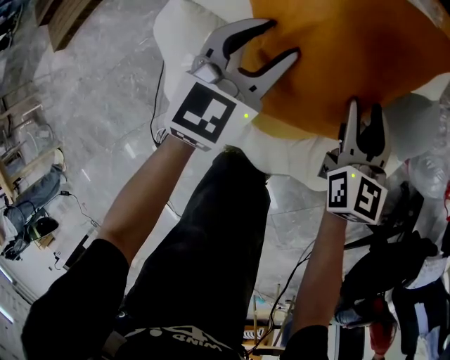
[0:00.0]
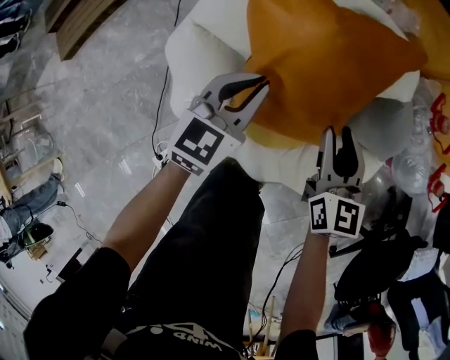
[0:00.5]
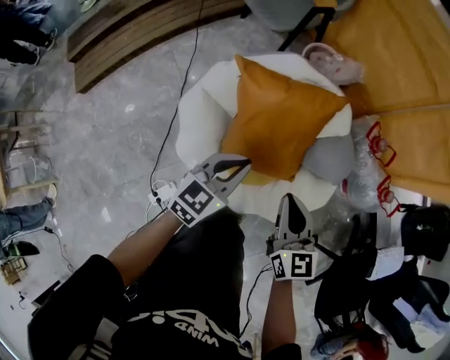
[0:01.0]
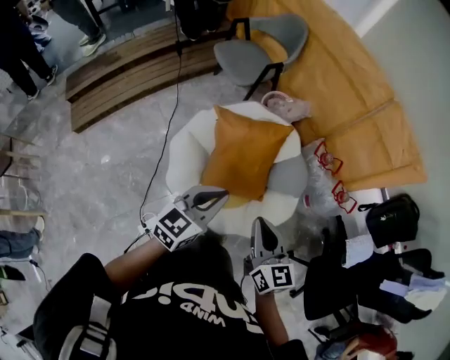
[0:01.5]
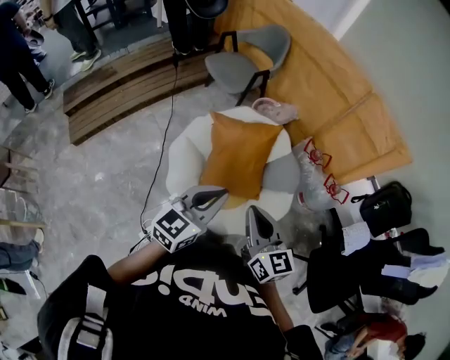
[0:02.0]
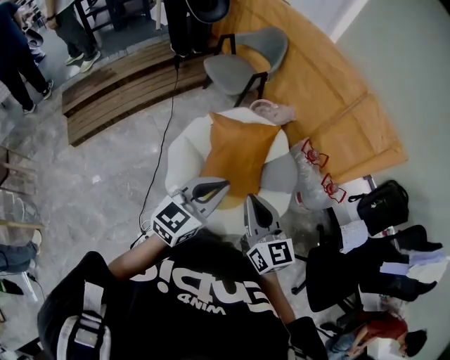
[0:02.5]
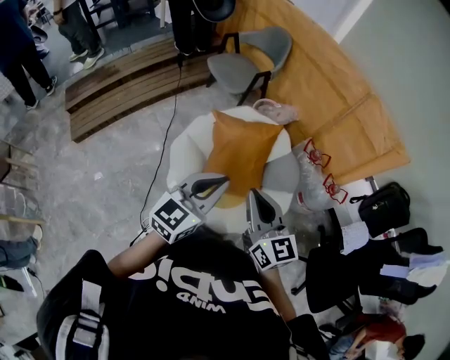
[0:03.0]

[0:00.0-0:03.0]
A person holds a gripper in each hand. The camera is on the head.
0:00.0 to 0:01.5: The grippers both shift upward and backward by about 50 cm. The right gripper closes its fingers. Meanwhile the left gripper closes.
0:01.5 to 0:03.0: The left gripper is displaced upward and backward by roughly 10 cm, while the right gripper is displaced upward by roughly 10 cm.

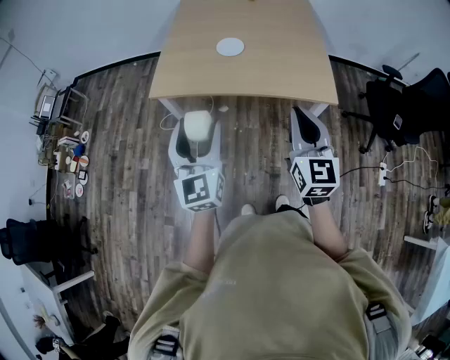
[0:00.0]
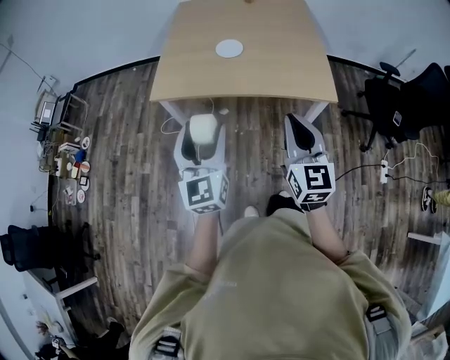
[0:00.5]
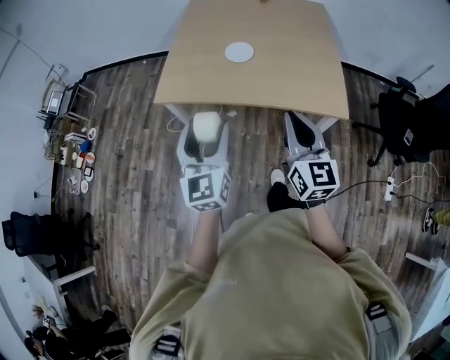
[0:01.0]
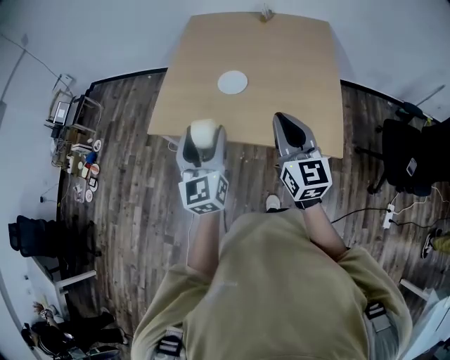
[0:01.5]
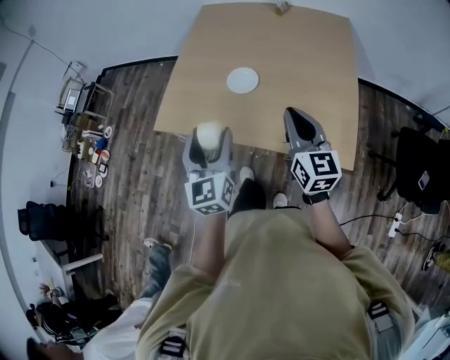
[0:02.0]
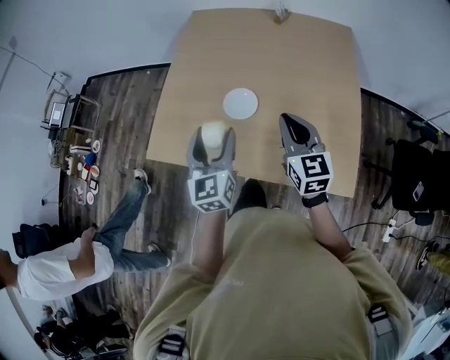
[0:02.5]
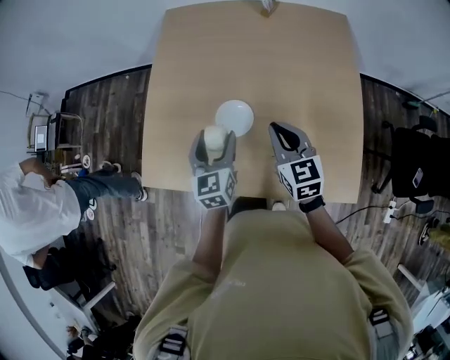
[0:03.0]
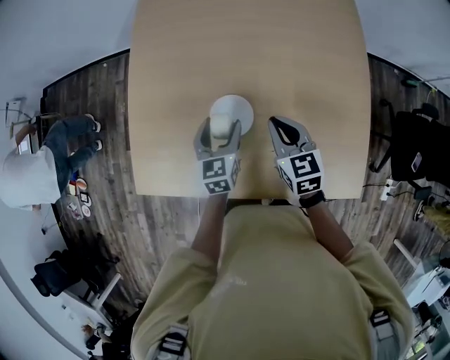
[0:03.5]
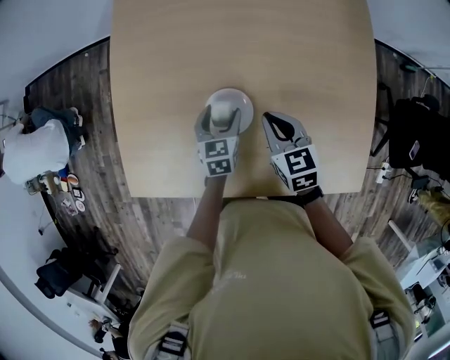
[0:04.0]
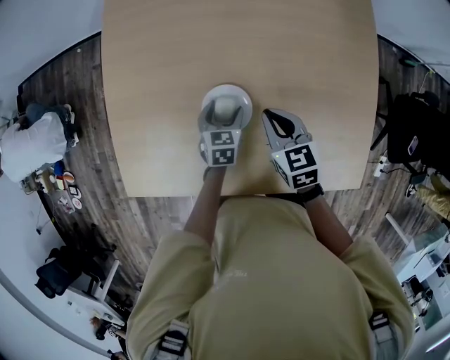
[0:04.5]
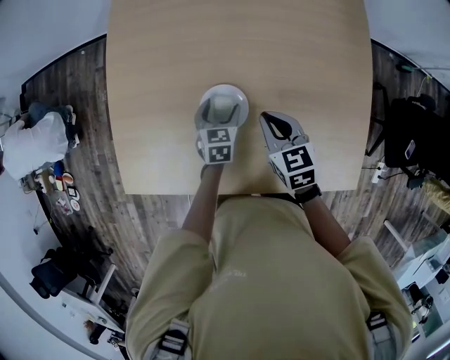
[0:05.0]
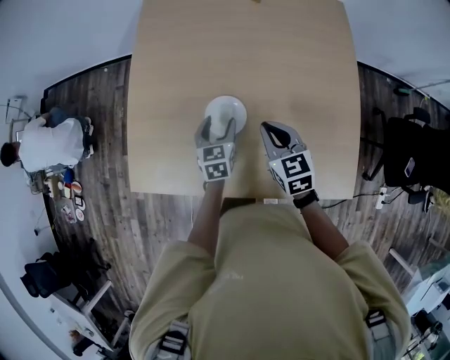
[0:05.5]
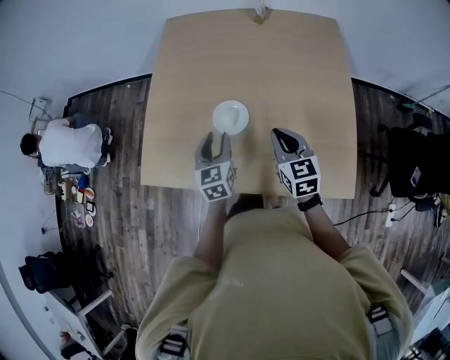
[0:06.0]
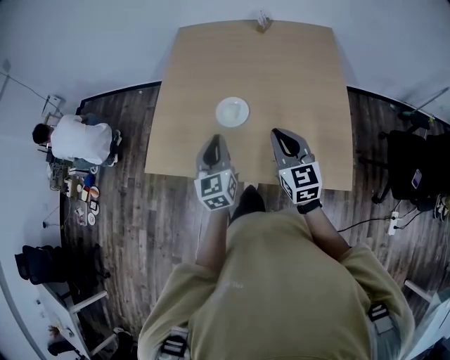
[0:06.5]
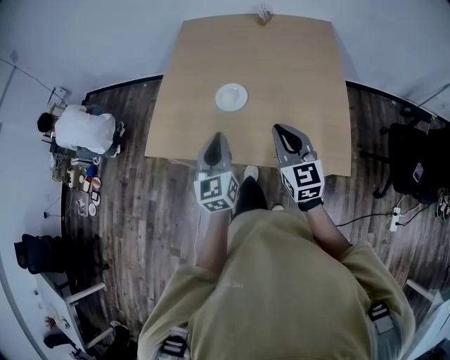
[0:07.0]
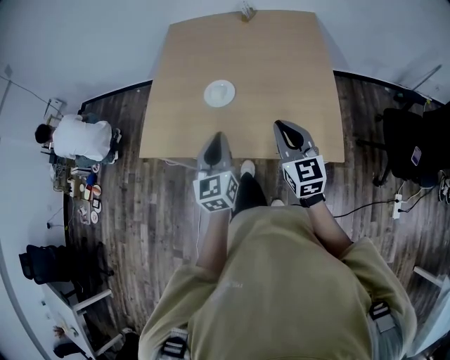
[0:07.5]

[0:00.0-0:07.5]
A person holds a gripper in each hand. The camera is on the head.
0:00.0 to 0:02.0: The grippers both shift forward and to the right by approximately 30 cm. The right gripper changes its angle by some 20 degrees.
0:02.0 to 0:04.0: The grippers both shift forward and downward by approximately 50 cm. The left gripper tilts its fingers about 40 degrees downward, while the right gripper tips its fingers downward by approximately 40 degrees.
0:04.0 to 0:05.5: The grippers both shift upward and backward by about 10 cm.
0:05.5 to 0:07.5: The right gripper is displaced backward by about 30 cm, and swivels approximately 20 degrees. The left gripper moves backward and upward, approximately 40 cm, changes its angle by approximately 30 degrees, and closes.

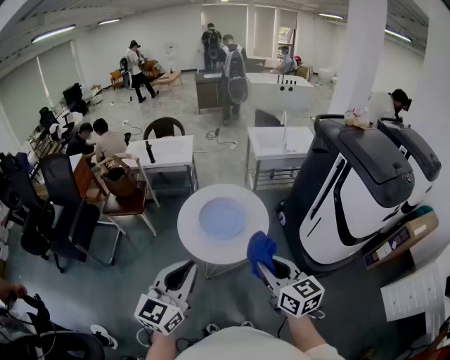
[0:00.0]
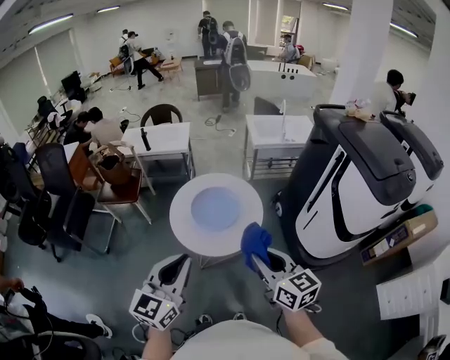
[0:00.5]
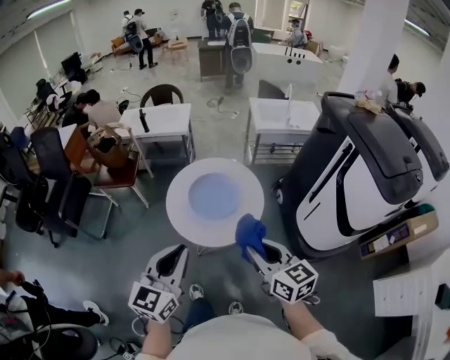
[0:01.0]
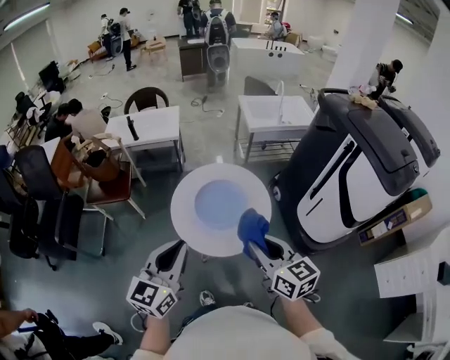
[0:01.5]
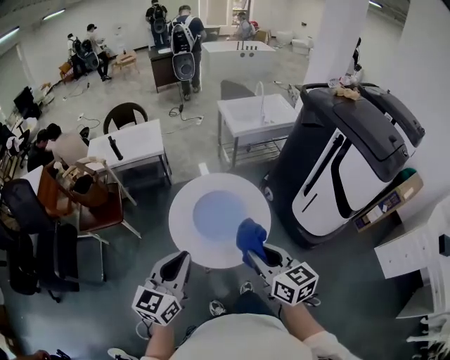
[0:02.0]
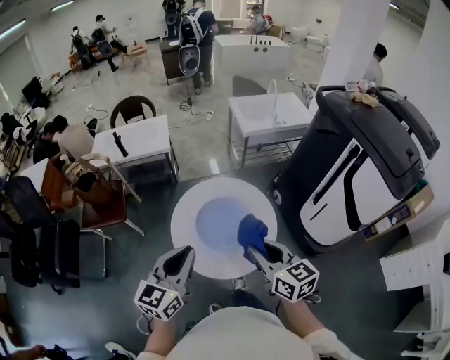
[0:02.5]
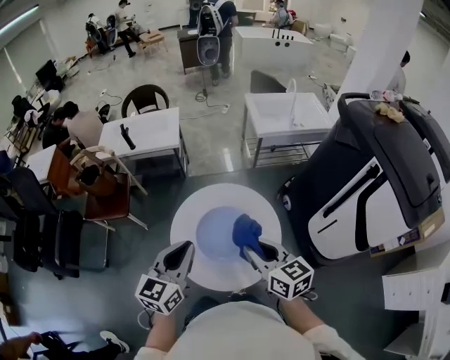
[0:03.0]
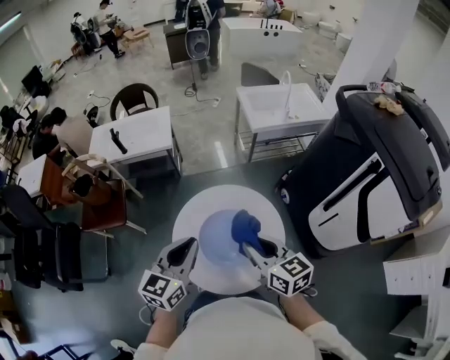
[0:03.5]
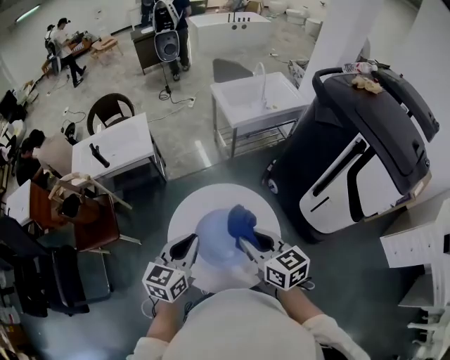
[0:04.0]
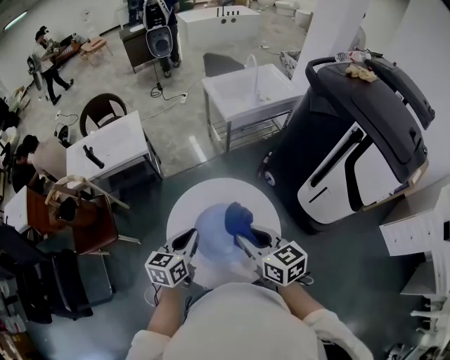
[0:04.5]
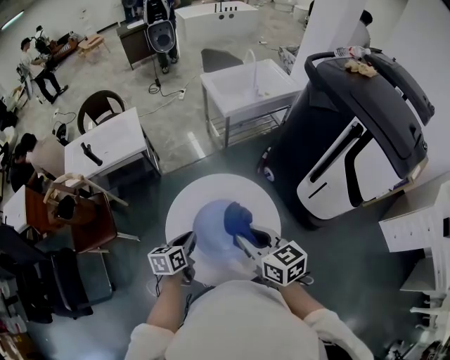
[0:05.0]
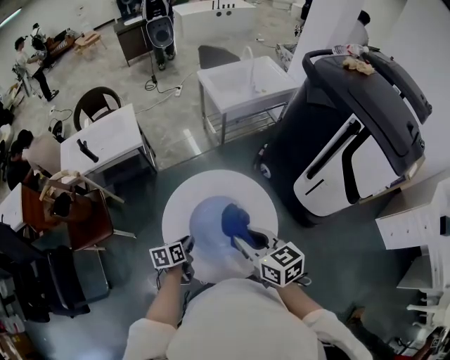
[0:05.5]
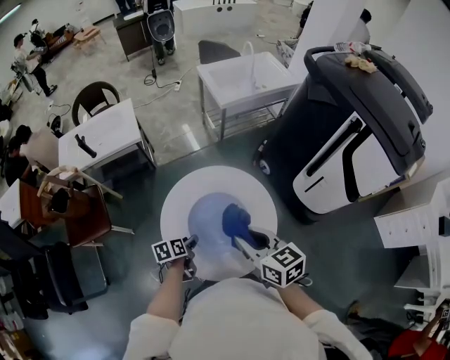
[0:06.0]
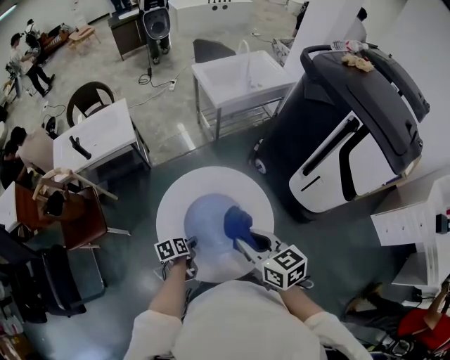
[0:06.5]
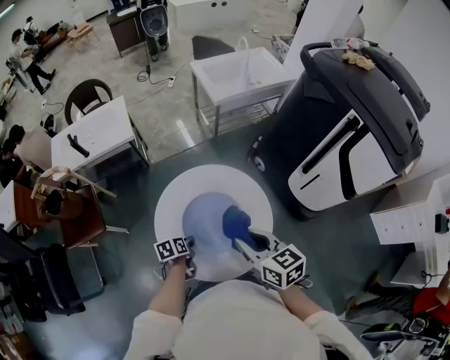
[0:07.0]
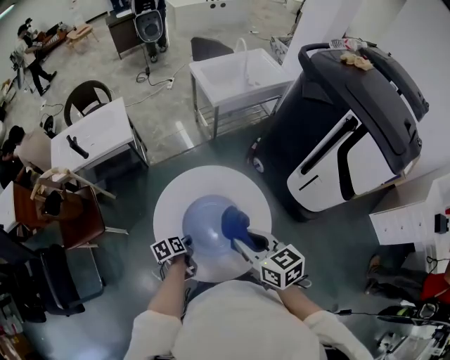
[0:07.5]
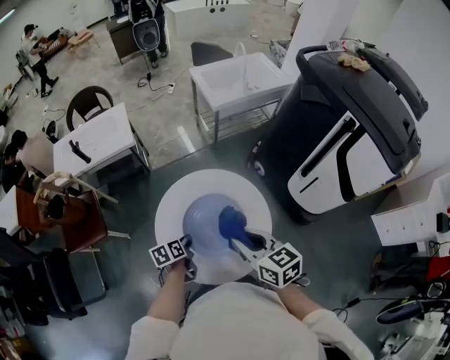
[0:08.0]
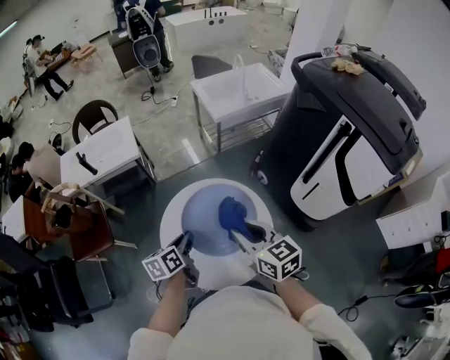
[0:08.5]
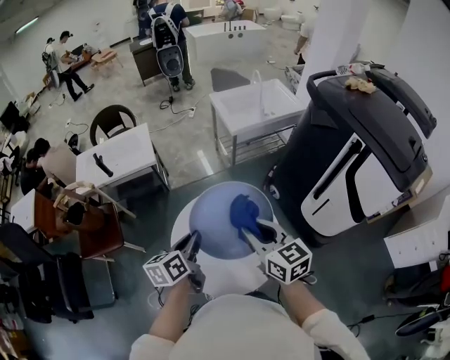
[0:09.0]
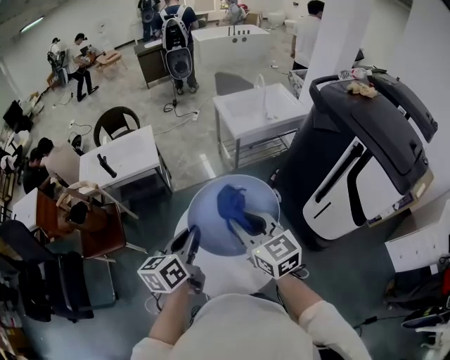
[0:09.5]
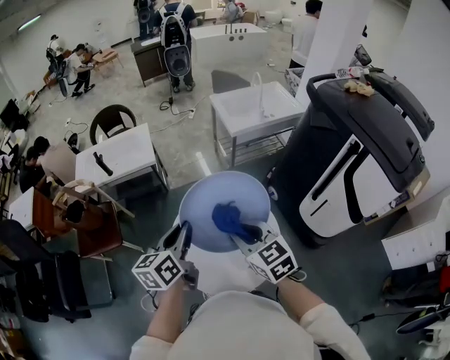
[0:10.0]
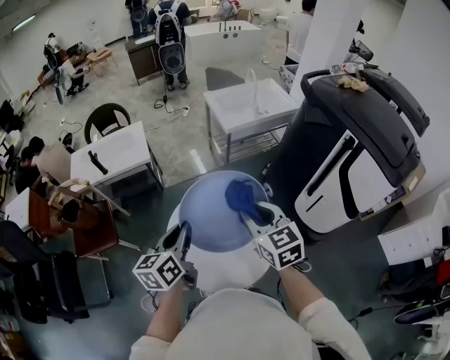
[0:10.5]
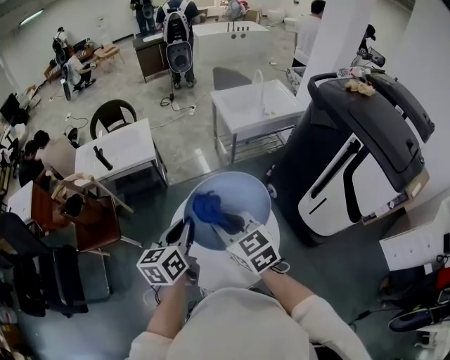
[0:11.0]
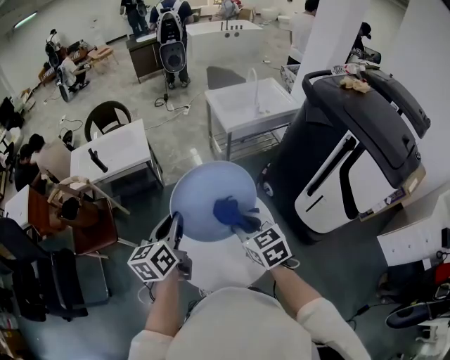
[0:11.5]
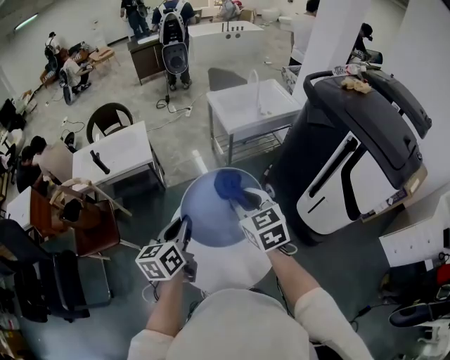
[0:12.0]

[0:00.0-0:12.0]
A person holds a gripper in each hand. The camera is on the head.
0:00.0 to 0:02.0: The left gripper moves forward, to the left and downward, about 20 cm, while the right gripper heads forward and to the left, covering about 15 cm.
0:02.0 to 0:04.0: The two grippers go some 25 cm forward.
0:04.0 to 0:06.0: The left gripper is displaced downward by approximately 25 cm, rotates about 50 degrees, and opens its fingers.
0:06.0 to 0:08.0: The left gripper closes up.
0:08.0 to 0:10.0: The left gripper is displaced upward by about 30 cm, and angles its fingers upward, by some 30 degrees, while the right gripper shifts roughly 5 cm upward, and turns by some 20 degrees.
0:10.0 to 0:12.0: The right gripper goes left and right, approximately 10 cm each way, reversing 2 times.

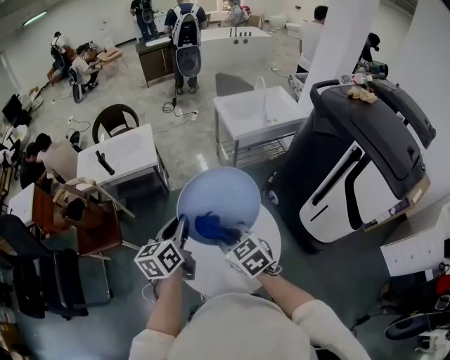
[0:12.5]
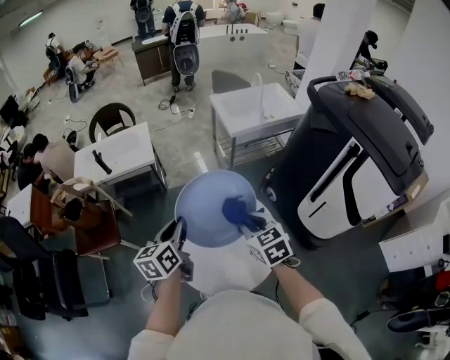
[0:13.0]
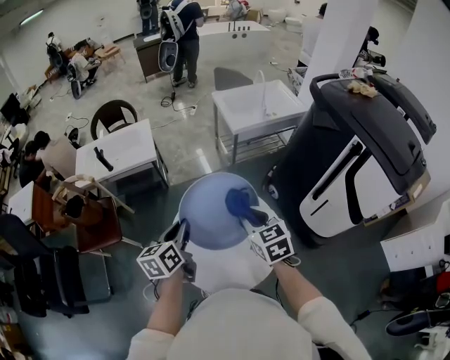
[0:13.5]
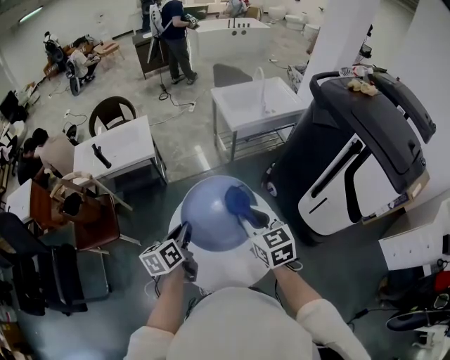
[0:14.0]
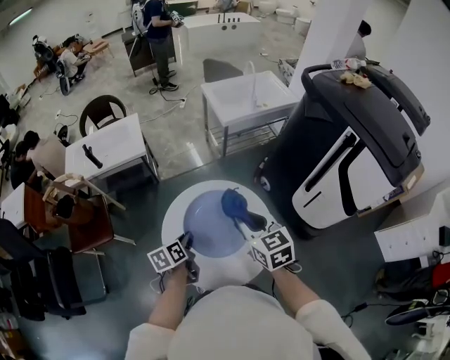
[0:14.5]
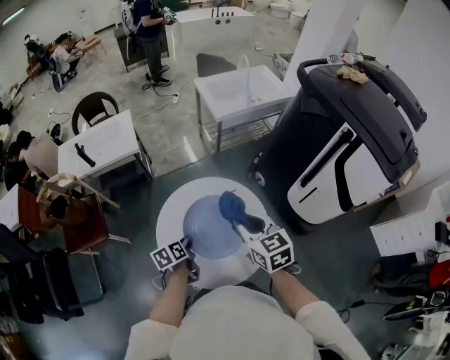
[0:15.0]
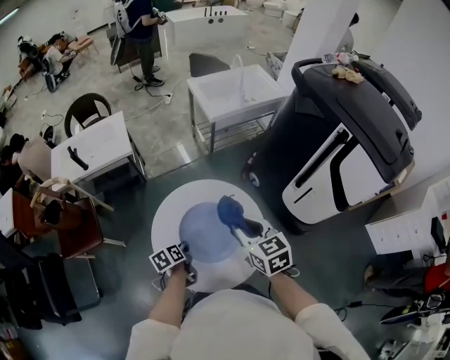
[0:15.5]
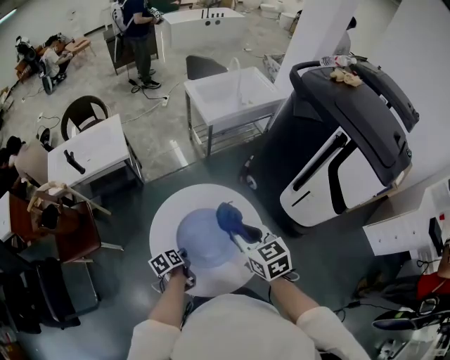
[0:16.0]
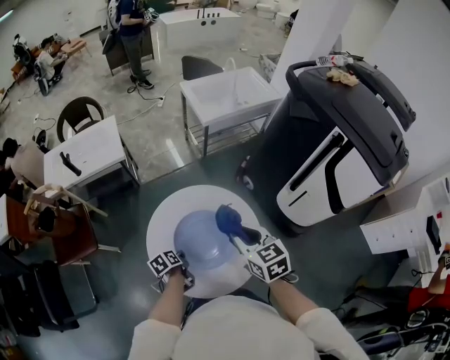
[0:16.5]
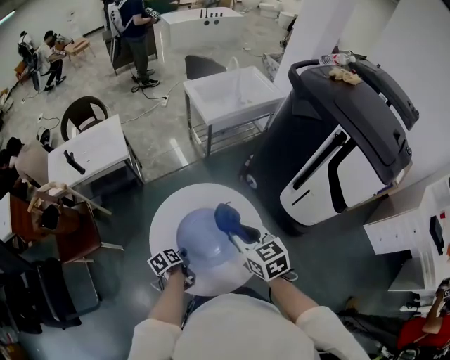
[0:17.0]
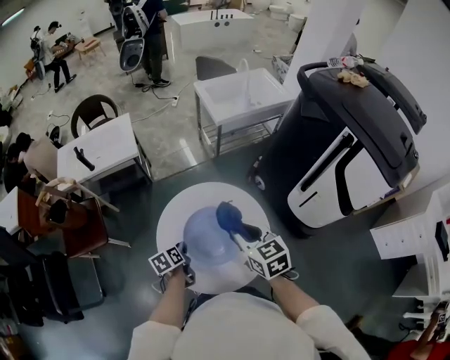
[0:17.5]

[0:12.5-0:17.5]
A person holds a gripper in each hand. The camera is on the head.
0:12.5 to 0:15.0: The left gripper shifts some 25 cm downward, and swivels some 30 degrees. Meanwhile the right gripper shifts about 10 cm to the right, and changes its angle by approximately 20 degrees.
0:15.0 to 0:17.5: The left gripper goes downward and returns, approximately 10 cm each way.
